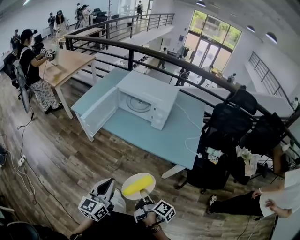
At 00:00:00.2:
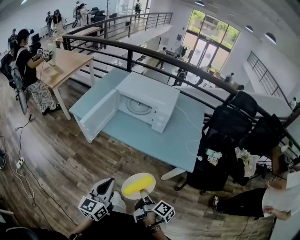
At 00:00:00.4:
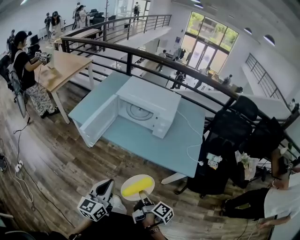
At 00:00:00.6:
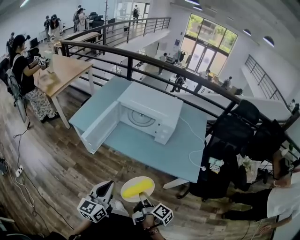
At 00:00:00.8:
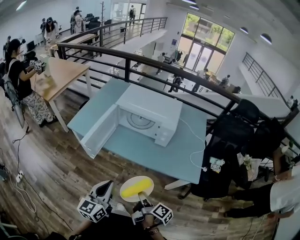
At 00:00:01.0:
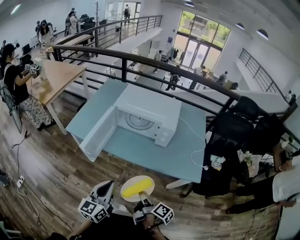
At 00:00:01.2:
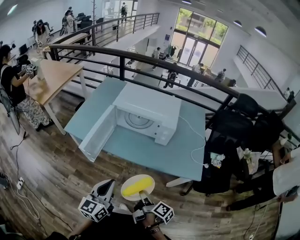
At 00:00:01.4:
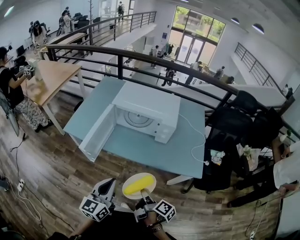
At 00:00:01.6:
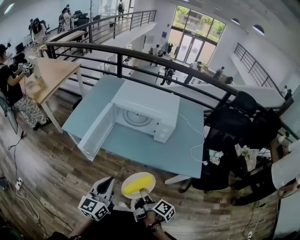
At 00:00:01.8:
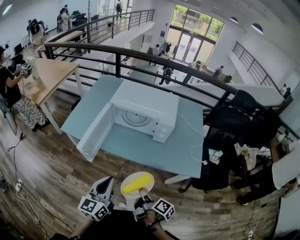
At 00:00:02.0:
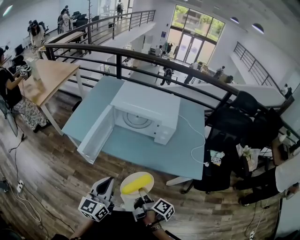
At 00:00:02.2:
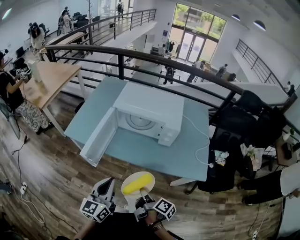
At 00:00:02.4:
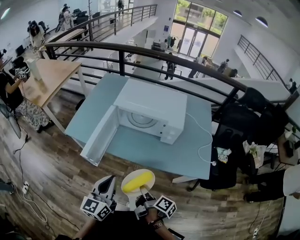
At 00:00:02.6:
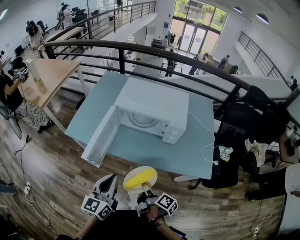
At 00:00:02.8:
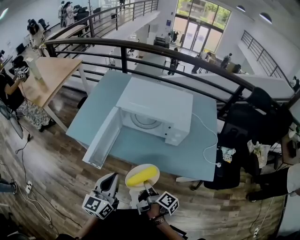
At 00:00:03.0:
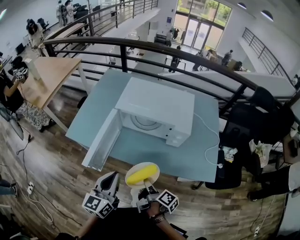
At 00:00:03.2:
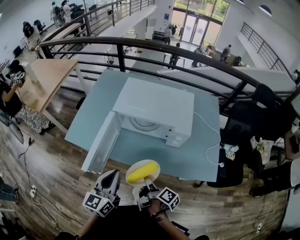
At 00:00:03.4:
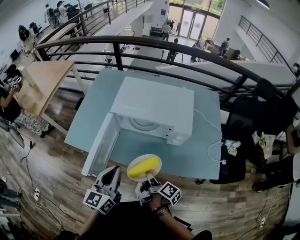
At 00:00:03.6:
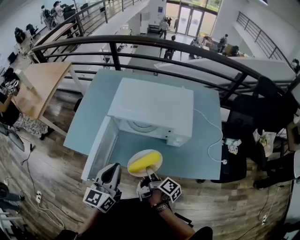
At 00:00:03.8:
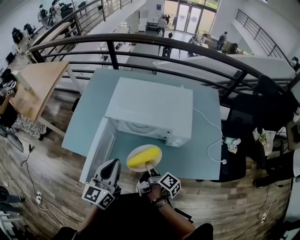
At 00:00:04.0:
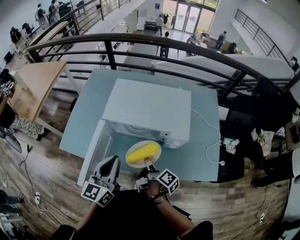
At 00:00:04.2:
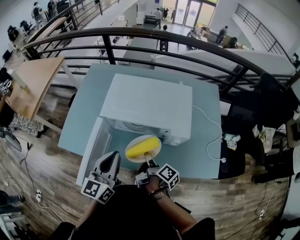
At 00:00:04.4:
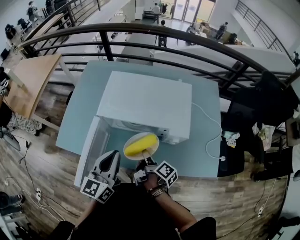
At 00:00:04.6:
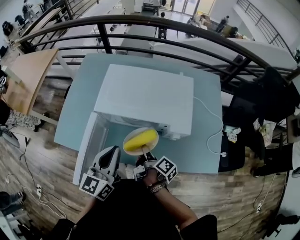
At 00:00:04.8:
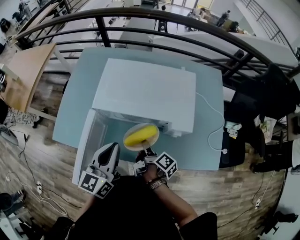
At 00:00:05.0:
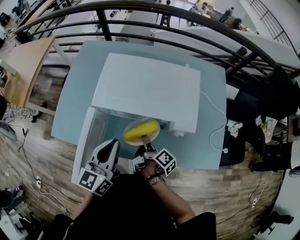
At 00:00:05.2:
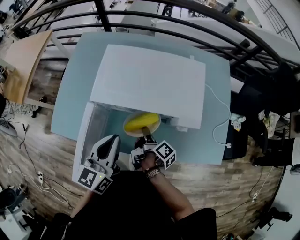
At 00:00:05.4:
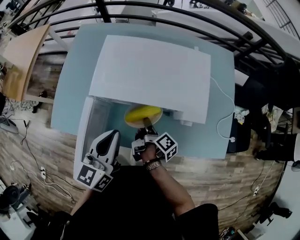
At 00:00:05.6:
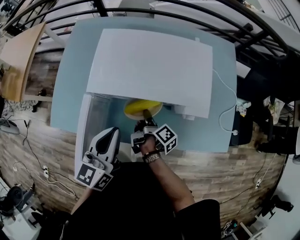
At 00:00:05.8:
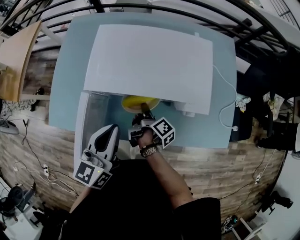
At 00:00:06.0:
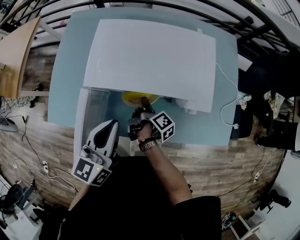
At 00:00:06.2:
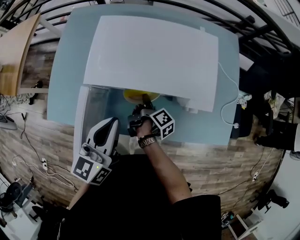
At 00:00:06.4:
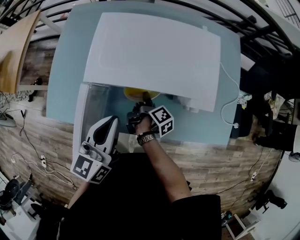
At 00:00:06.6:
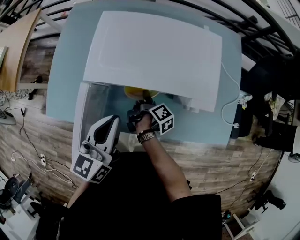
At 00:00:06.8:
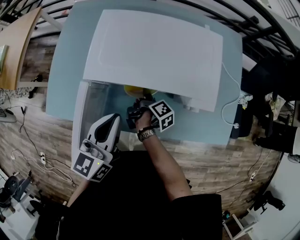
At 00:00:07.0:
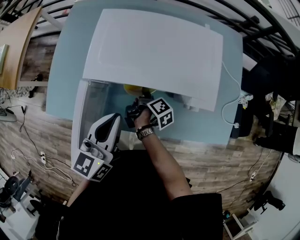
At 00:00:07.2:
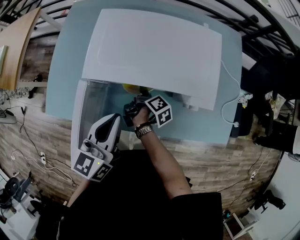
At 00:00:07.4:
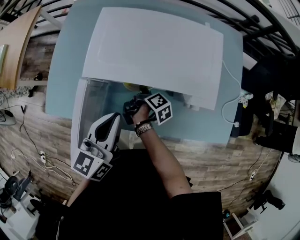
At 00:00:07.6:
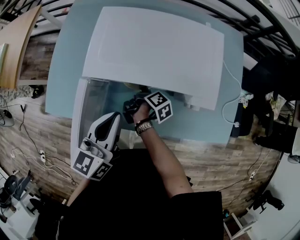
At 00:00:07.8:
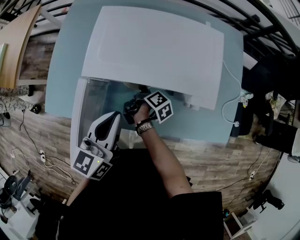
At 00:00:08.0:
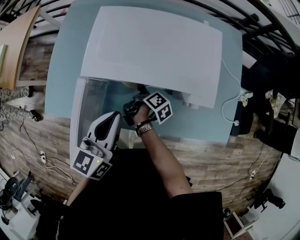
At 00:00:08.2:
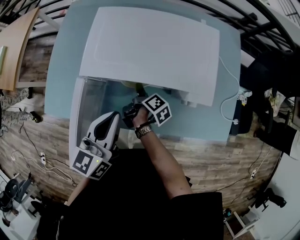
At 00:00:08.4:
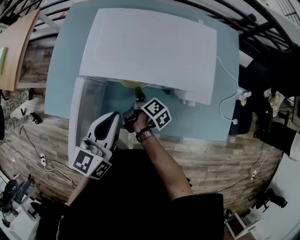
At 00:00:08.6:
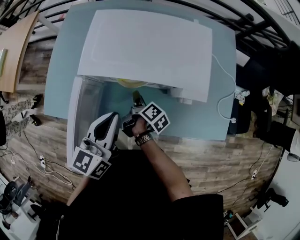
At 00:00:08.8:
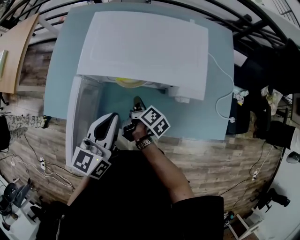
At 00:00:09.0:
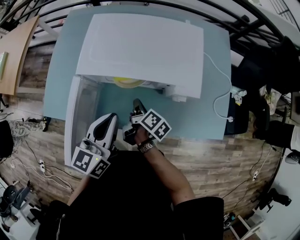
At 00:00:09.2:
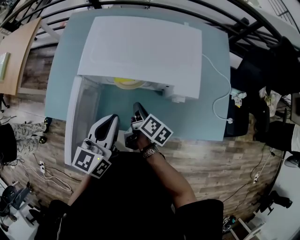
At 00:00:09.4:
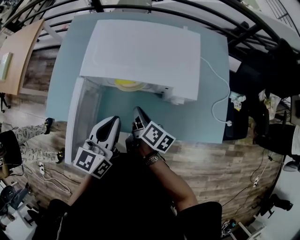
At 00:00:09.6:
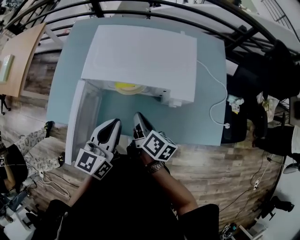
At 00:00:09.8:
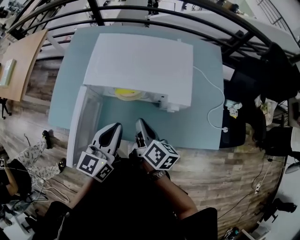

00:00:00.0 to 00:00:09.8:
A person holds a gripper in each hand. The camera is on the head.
00:00:00.0 to 00:00:01.4: The left gripper shifts by roughly 20 cm.
00:00:01.4 to 00:00:02.8: The left gripper moves roughly 10 cm.
00:00:02.8 to 00:00:04.2: The left gripper changes place by about 20 cm.
00:00:04.2 to 00:00:05.6: The left gripper shifts by about 10 cm.
00:00:08.4 to 00:00:09.8: The left gripper changes place by approximately 5 cm.

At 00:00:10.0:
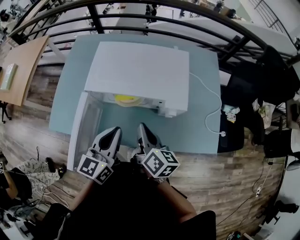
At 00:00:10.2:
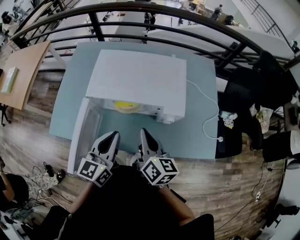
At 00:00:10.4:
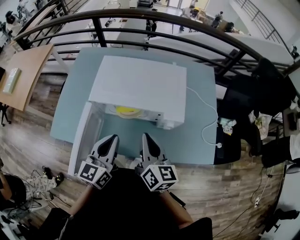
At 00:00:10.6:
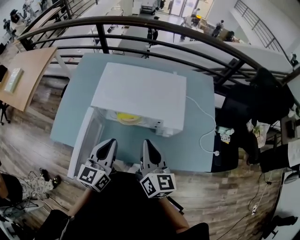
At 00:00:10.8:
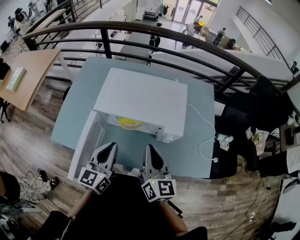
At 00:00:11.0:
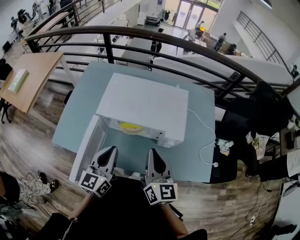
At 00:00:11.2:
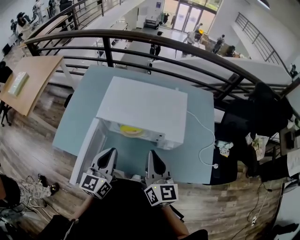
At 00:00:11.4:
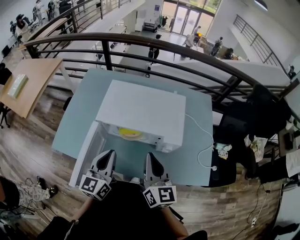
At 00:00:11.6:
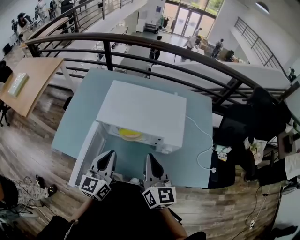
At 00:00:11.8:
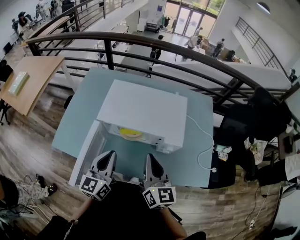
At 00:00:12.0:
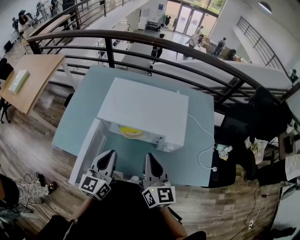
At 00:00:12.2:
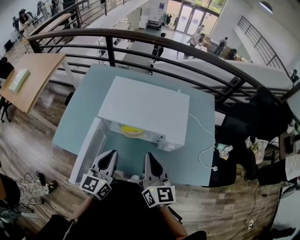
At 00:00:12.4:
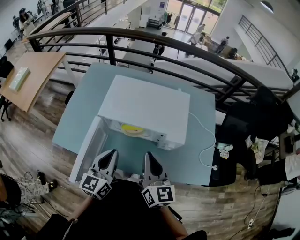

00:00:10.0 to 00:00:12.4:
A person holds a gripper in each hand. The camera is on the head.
00:00:10.0 to 00:00:11.2: The left gripper changes place by approximately 5 cm.

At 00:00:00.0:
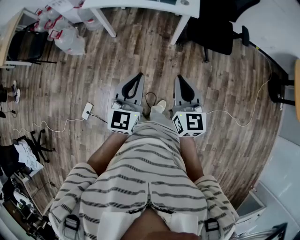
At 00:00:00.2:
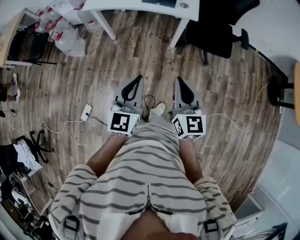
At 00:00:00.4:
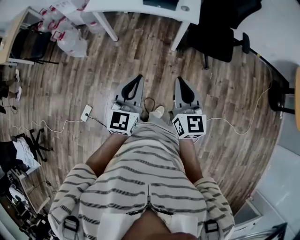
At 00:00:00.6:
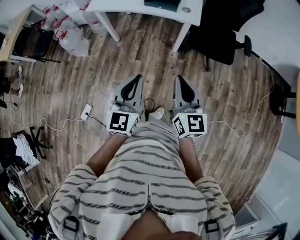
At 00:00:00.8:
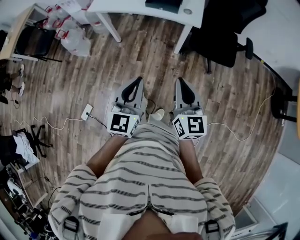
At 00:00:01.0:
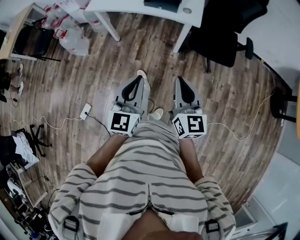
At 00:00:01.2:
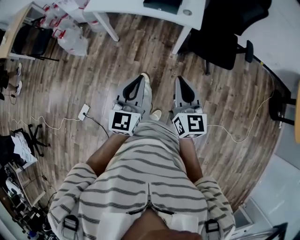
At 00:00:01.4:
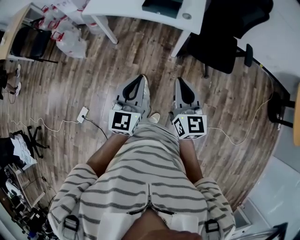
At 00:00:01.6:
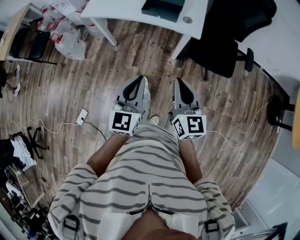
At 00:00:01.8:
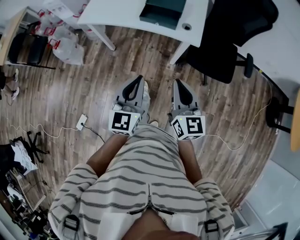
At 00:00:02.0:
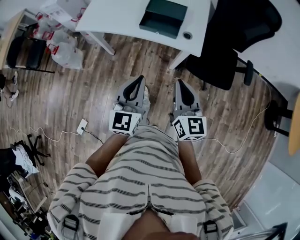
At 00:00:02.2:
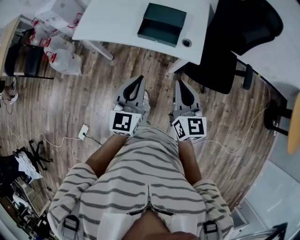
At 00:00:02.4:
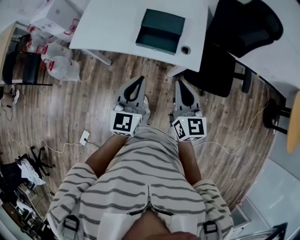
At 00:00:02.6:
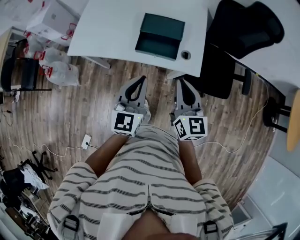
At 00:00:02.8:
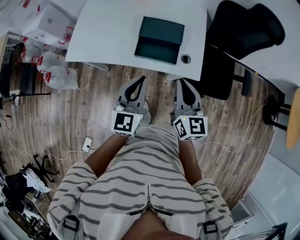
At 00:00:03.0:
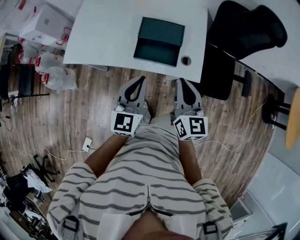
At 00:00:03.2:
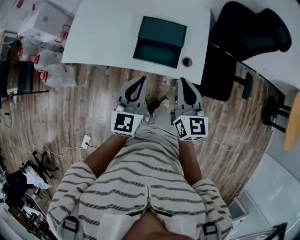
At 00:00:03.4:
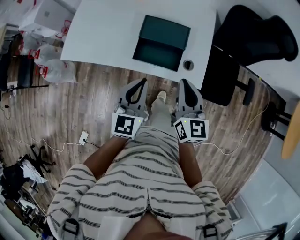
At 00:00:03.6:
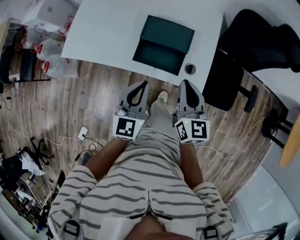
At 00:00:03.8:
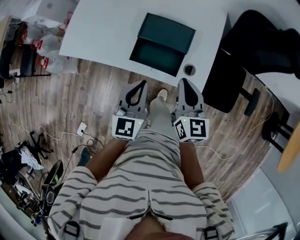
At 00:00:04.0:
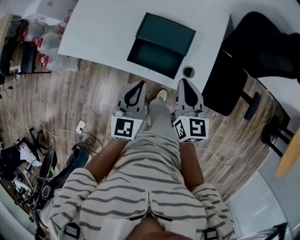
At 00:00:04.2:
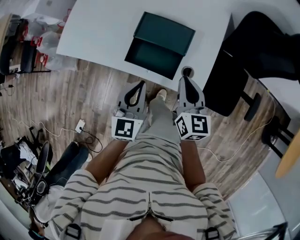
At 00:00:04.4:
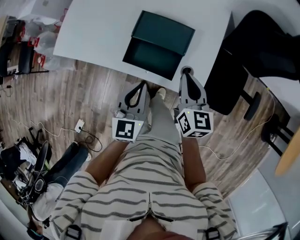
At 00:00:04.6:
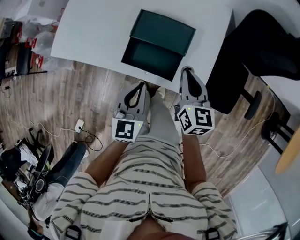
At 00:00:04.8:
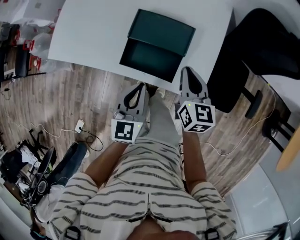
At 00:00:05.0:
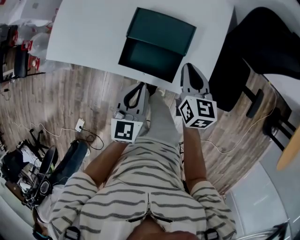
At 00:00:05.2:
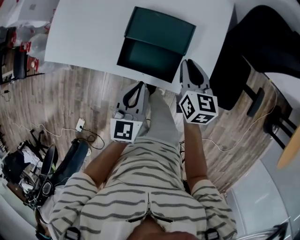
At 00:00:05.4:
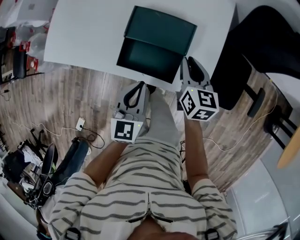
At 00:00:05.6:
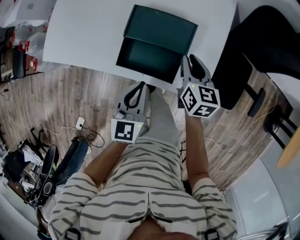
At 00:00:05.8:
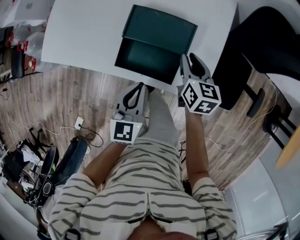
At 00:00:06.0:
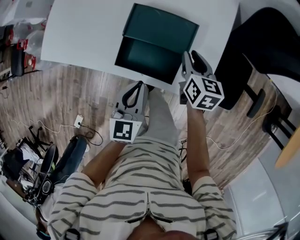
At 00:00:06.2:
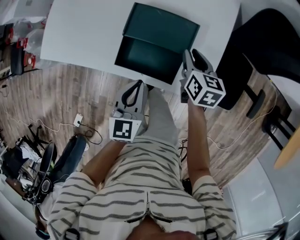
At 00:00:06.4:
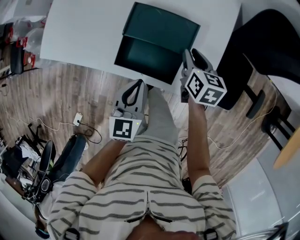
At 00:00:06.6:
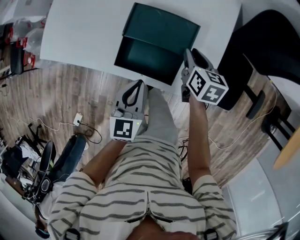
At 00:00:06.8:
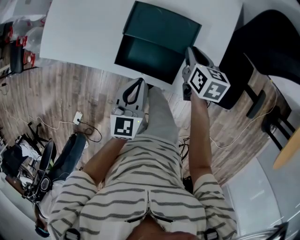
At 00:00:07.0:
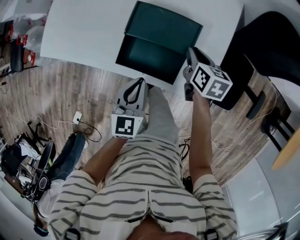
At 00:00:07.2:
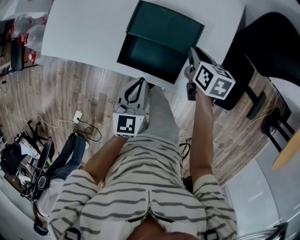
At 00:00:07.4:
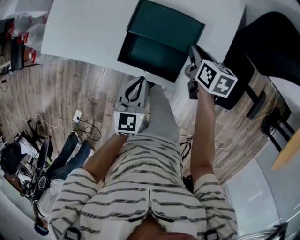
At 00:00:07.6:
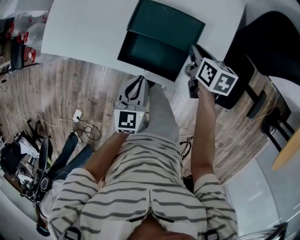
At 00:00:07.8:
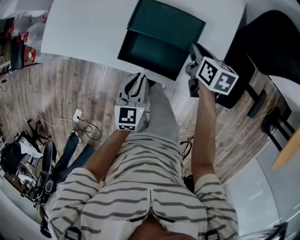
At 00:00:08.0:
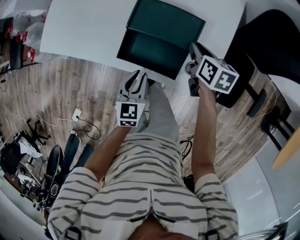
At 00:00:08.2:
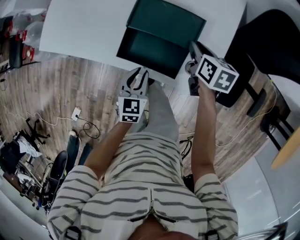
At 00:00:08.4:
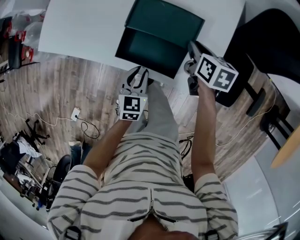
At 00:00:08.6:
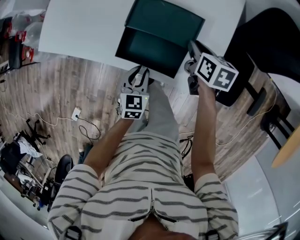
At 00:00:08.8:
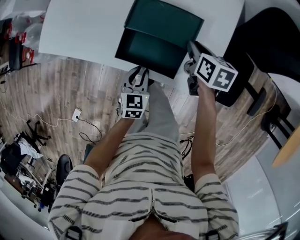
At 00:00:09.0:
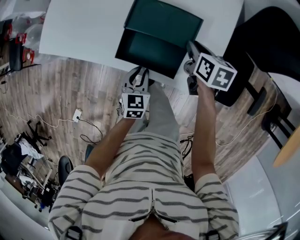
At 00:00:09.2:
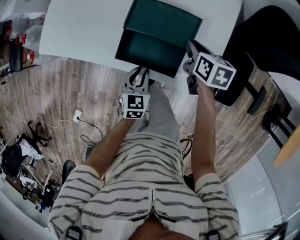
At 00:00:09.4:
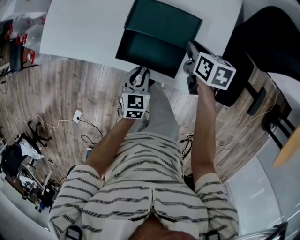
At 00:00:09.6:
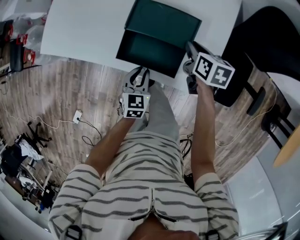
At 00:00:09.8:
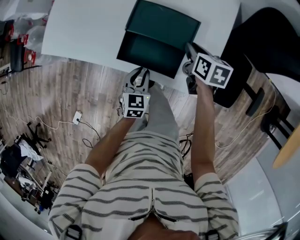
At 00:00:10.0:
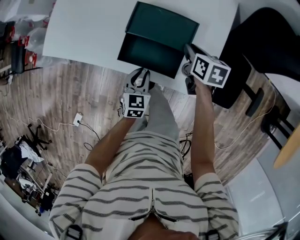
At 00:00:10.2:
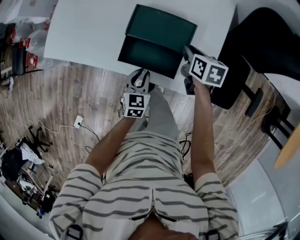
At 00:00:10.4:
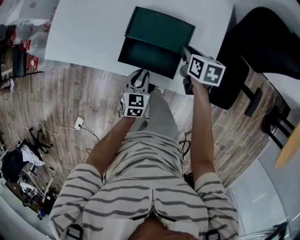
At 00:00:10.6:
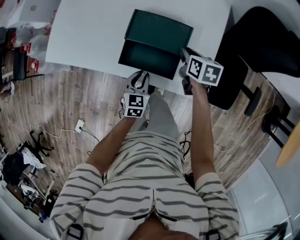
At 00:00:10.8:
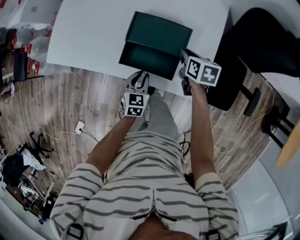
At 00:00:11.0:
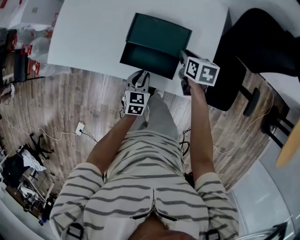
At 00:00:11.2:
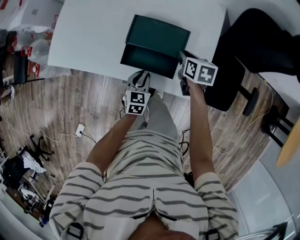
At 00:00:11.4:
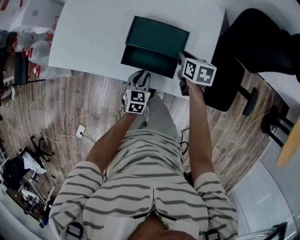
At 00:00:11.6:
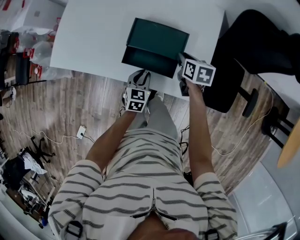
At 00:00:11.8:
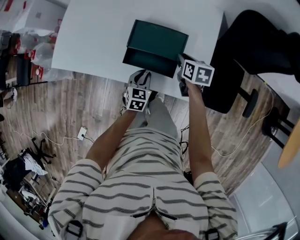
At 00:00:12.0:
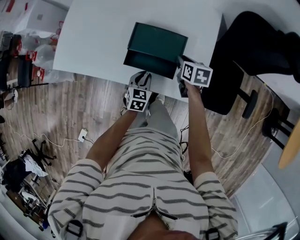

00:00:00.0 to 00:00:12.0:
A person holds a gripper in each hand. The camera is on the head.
00:00:00.0 to 00:00:01.6: The grippers both shift forward by roughly 15 cm.
00:00:01.6 to 00:00:03.0: Both grippers move forward, roughly 35 cm.
00:00:03.0 to 00:00:04.4: The left gripper shifts roughly 15 cm downward and forward; the right gripper is displaced forward and downward by roughly 20 cm.
00:00:04.4 to 00:00:06.0: The left gripper moves downward, roughly 5 cm; the right gripper is displaced downward and forward by about 15 cm, and opens its fingers.
00:00:06.0 to 00:00:07.6: The left gripper shifts by some 5 cm.
00:00:07.6 to 00:00:09.0: The left gripper is displaced downward by roughly 10 cm.
00:00:09.0 to 00:00:12.0: The grippers stay close to where they were, moving slightly.
